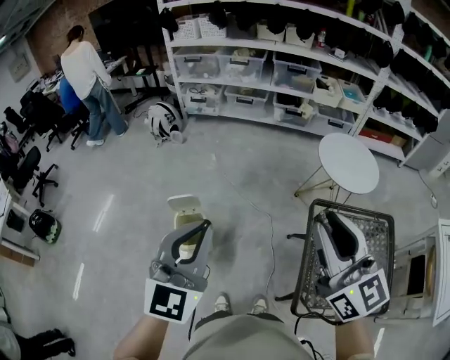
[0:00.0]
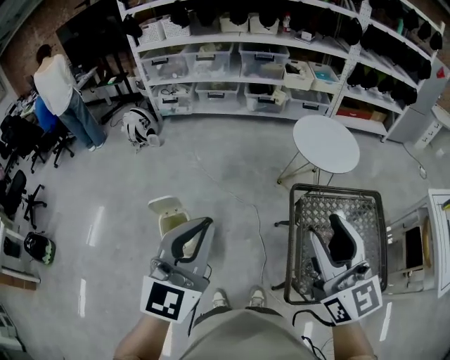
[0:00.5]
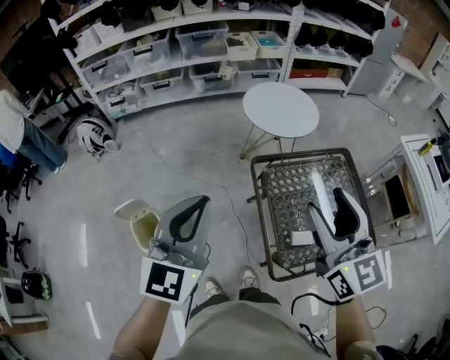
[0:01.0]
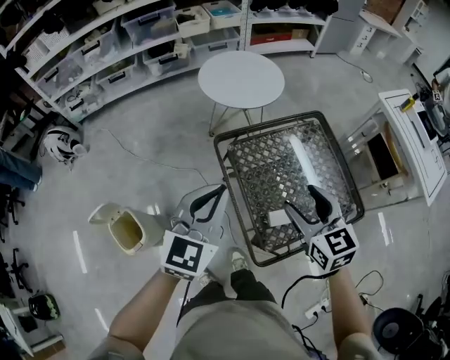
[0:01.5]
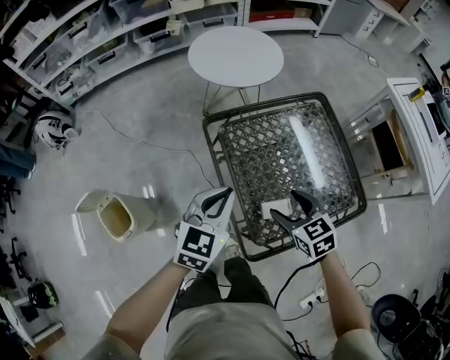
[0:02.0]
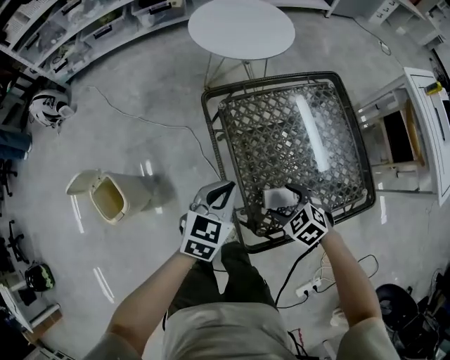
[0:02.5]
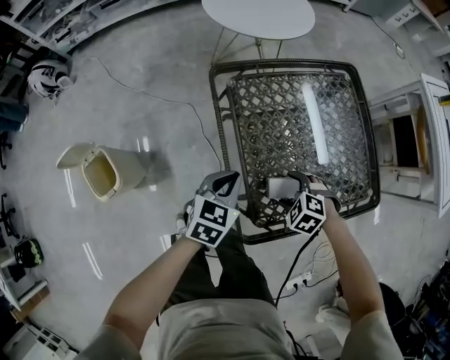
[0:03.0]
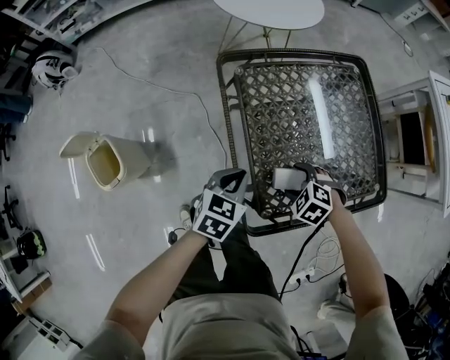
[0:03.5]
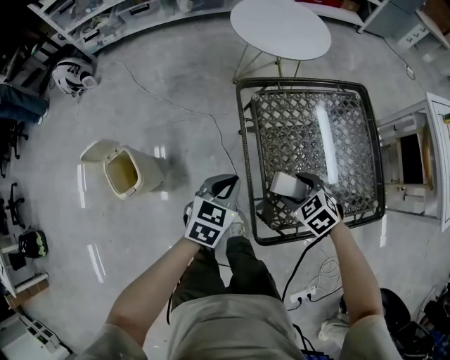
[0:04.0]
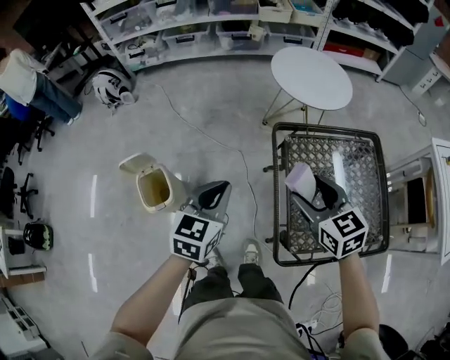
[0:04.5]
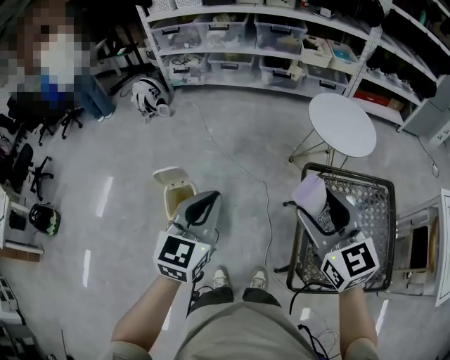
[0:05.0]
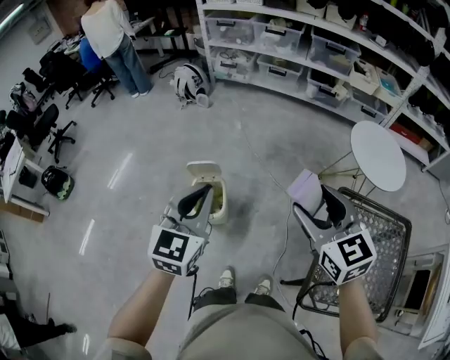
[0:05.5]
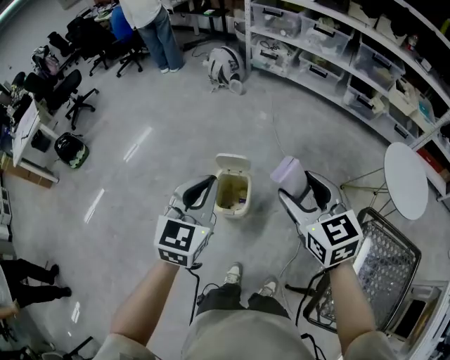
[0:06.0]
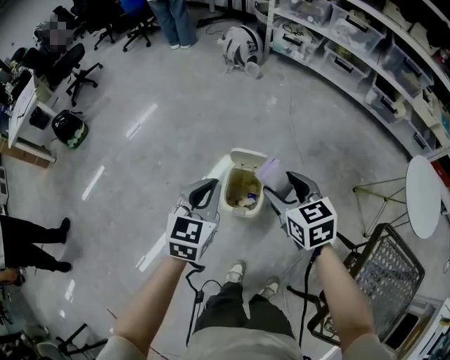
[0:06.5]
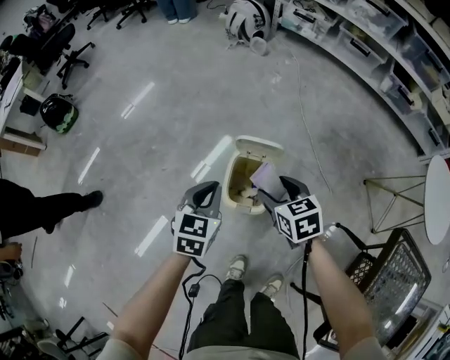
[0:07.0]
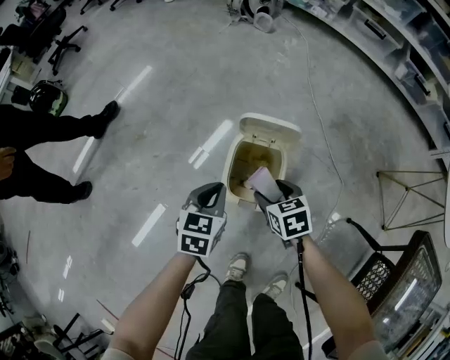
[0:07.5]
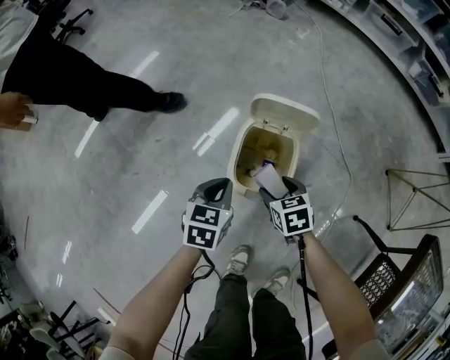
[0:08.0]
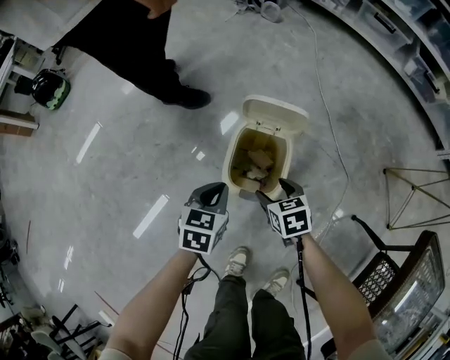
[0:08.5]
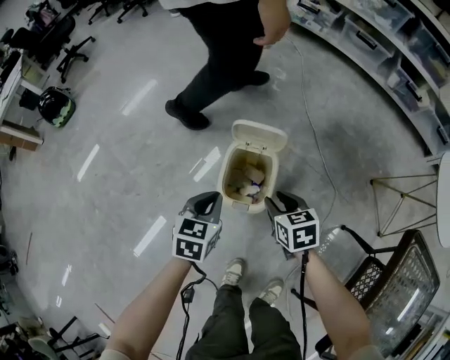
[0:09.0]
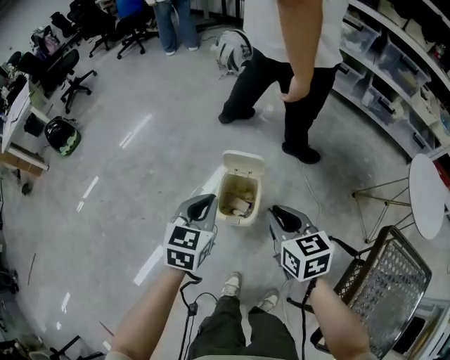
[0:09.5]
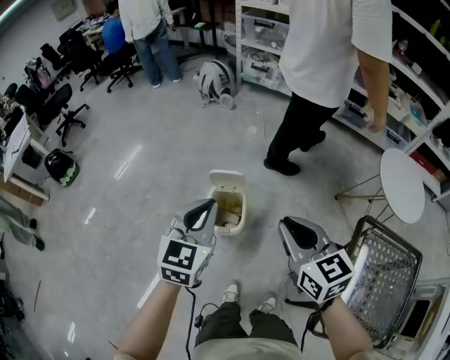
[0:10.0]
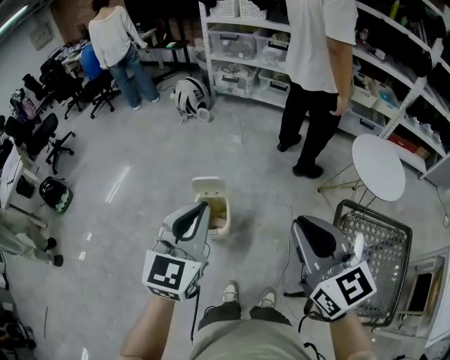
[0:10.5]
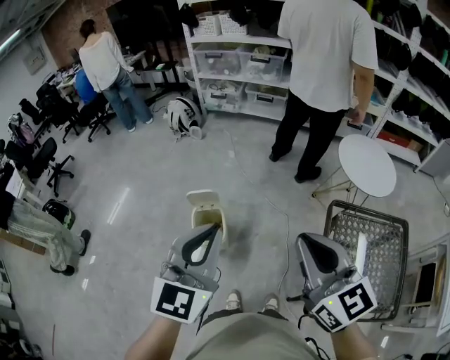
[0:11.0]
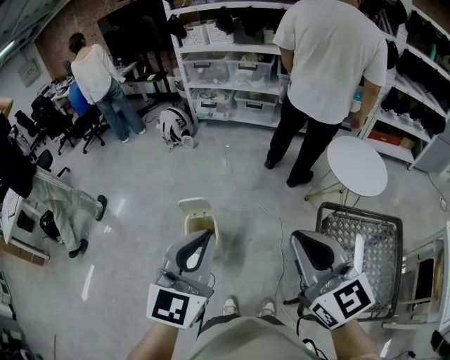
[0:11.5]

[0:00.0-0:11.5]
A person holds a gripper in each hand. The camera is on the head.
0:00.0 to 0:02.0: The right gripper shifts roughly 40 cm downward, points its fingers about 50 degrees further downward, and opens its fingers. The left gripper shifts by some 50 cm, and swivels approximately 50 degrees.
0:02.0 to 0:04.0: The grippers both shift downward by roughly 15 cm. The right gripper swivels some 30 degrees.
0:04.0 to 0:06.0: The pair of grippers is taken about 50 cm. The left gripper swivels about 60 degrees. Meanwhile the right gripper angles its fingers upward, by roughly 40 degrees.
0:06.0 to 0:07.5: The grippers both shift downward by approximately 50 cm. The left gripper changes its angle by about 30 degrees. The right gripper angles its fingers downward, by about 30 degrees.
0:07.5 to 0:09.5: Both grippers move upward, some 25 cm. The right gripper rotates about 20 degrees, and closes its fingers.
0:09.5 to 0:11.5: The right gripper is displaced upward, backward and to the right by about 50 cm, and changes its angle by approximately 40 degrees; the left gripper heads upward, to the right and backward, covering some 50 cm, and changes its angle by some 30 degrees.

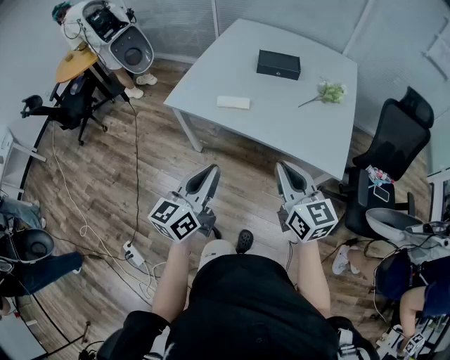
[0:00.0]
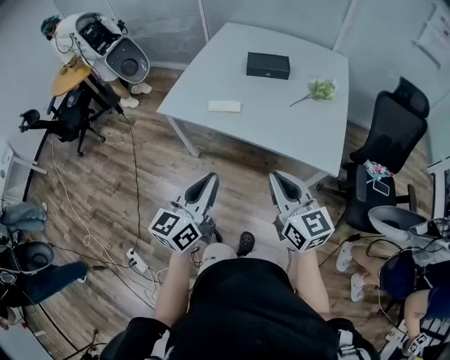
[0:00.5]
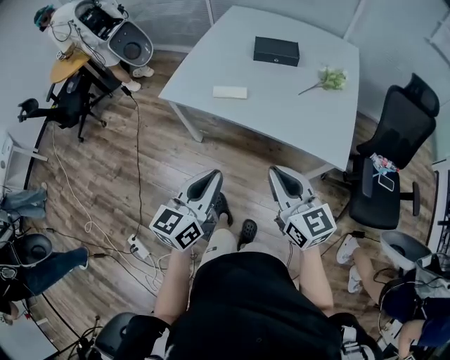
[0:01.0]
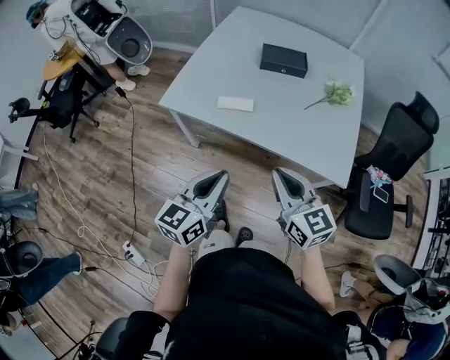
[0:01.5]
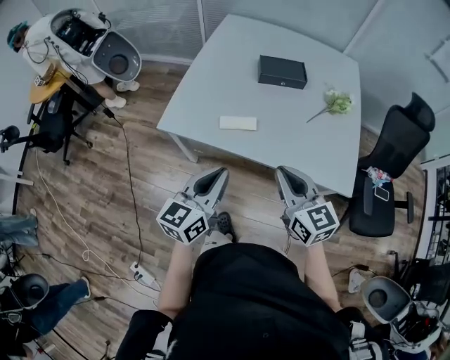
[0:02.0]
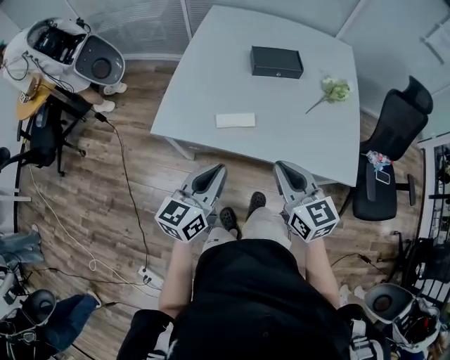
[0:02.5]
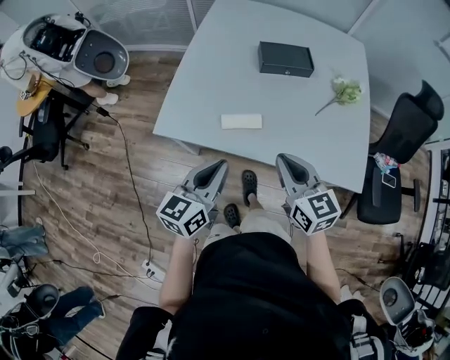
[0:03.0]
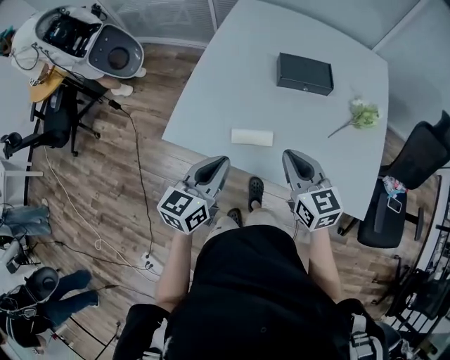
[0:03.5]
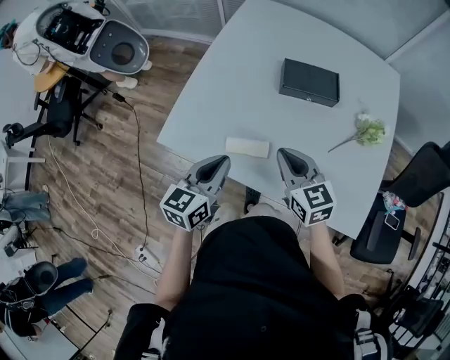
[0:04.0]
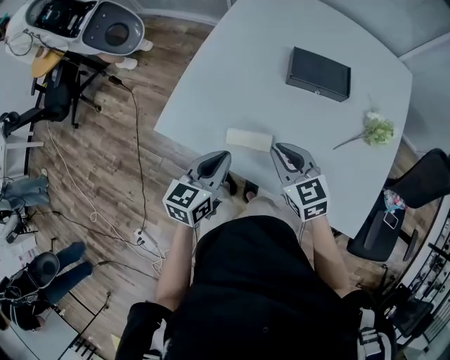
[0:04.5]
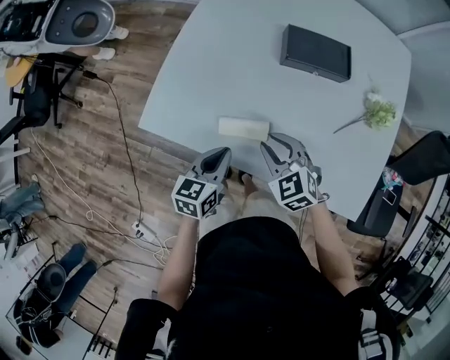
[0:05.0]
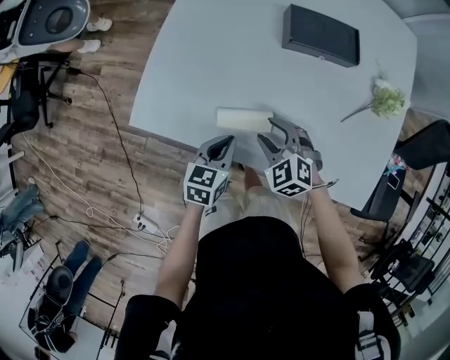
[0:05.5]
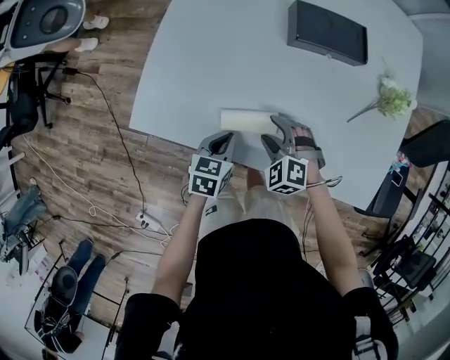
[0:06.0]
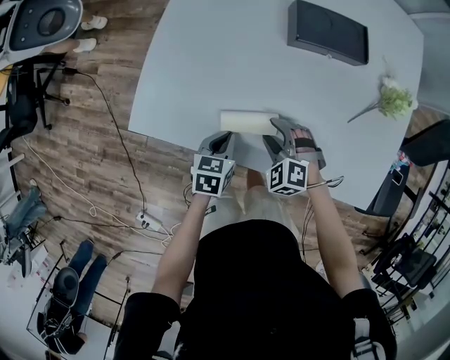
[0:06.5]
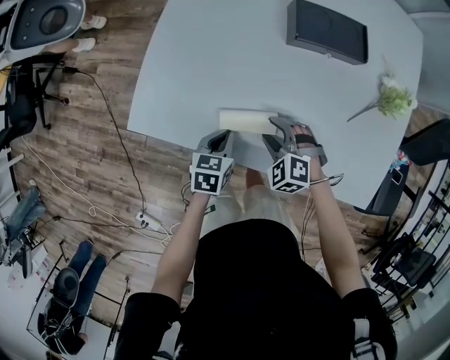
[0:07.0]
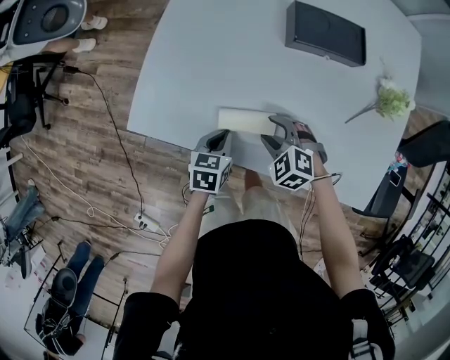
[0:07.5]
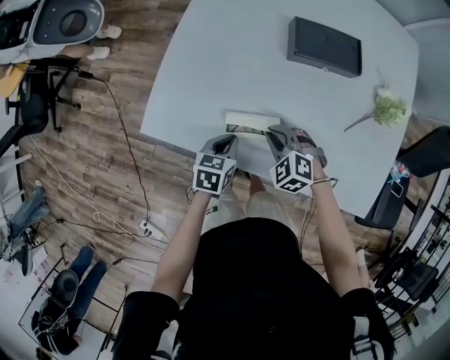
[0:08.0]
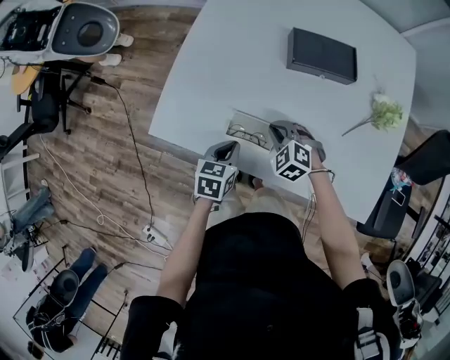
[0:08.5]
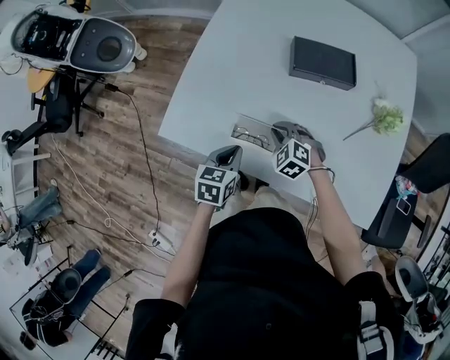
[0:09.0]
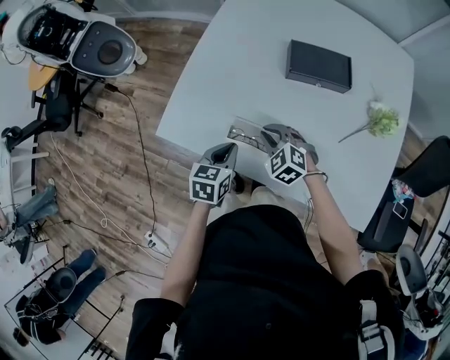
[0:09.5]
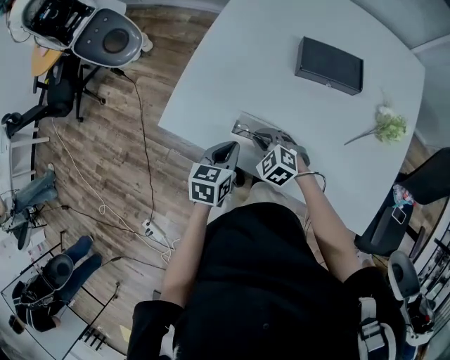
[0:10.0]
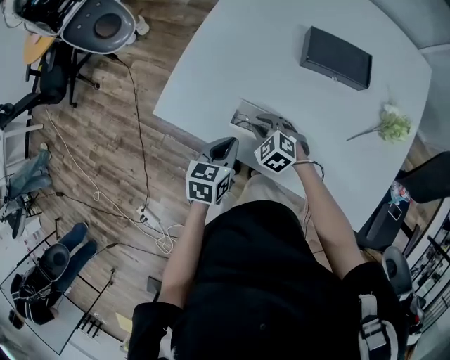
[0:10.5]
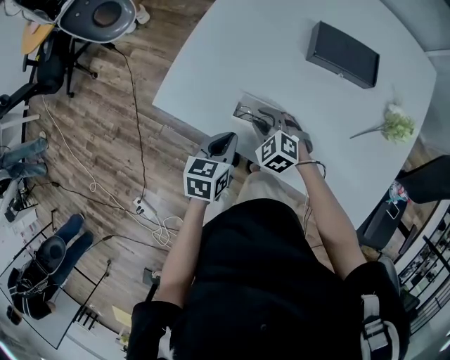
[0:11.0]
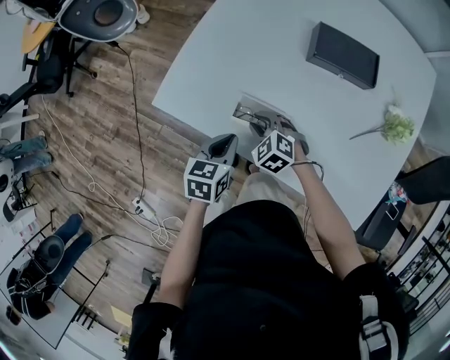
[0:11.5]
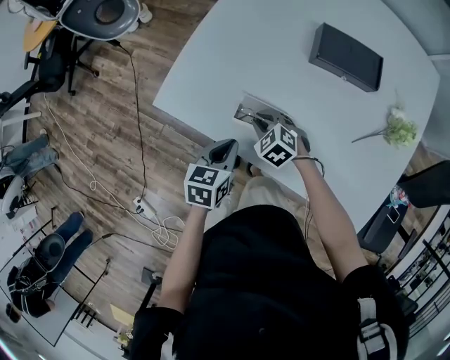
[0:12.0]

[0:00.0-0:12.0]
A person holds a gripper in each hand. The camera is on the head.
0:00.0 to 0:02.0: The left gripper moves forward, roughly 20 cm, while the right gripper is displaced forward and to the left by some 20 cm.
0:02.0 to 0:04.0: Both grippers travel together forward, approximately 25 cm.
0:04.0 to 0:06.0: The grippers both shift downward by approximately 25 cm. The right gripper points its fingers approximately 30 degrees further downward, and opens. Meanwhile the left gripper changes its angle by roughly 30 degrees.
0:06.0 to 0:08.0: The right gripper closes.
0:08.0 to 0:10.0: The right gripper ends up approximately 5 cm from where it was, while the left gripper travels upward by roughly 10 cm.
0:10.0 to 0:12.0: The right gripper is displaced downward by about 5 cm.

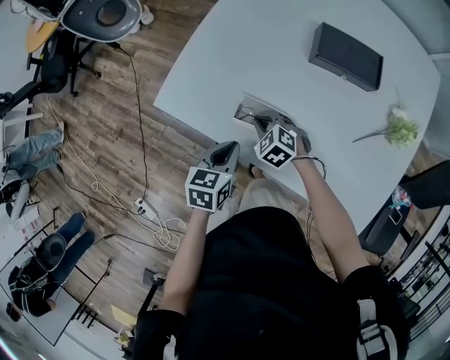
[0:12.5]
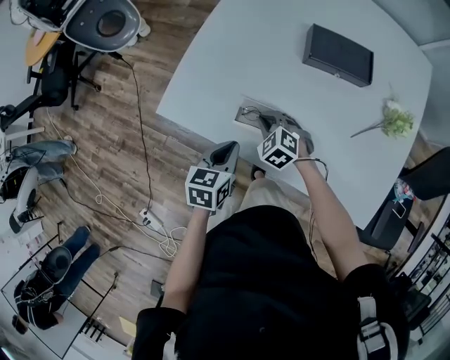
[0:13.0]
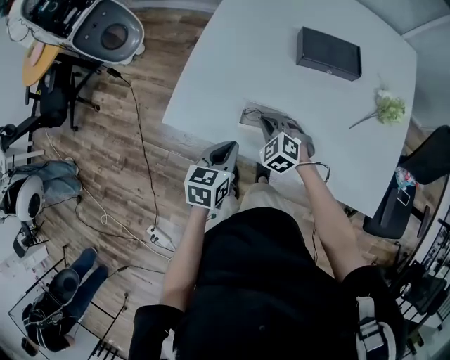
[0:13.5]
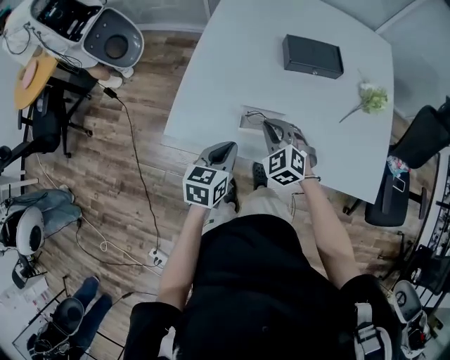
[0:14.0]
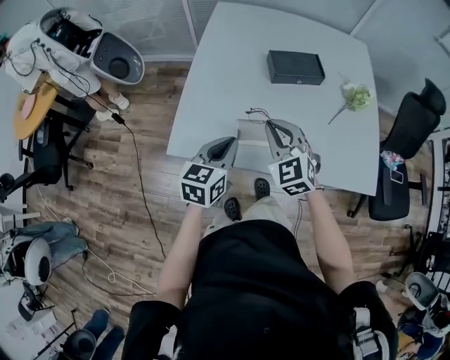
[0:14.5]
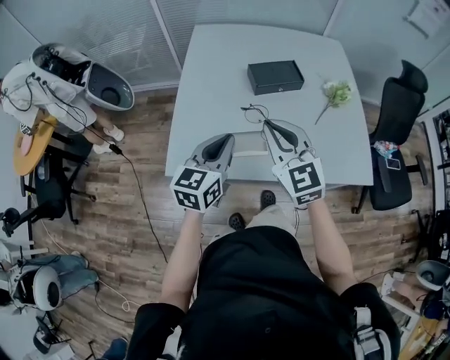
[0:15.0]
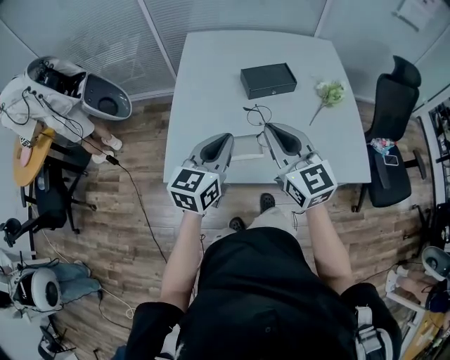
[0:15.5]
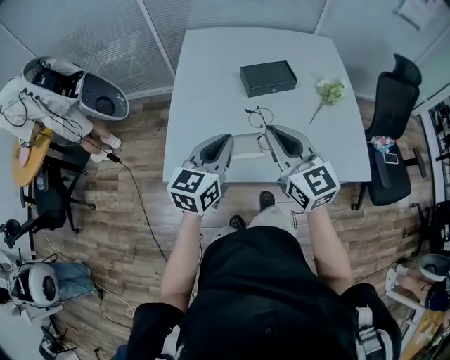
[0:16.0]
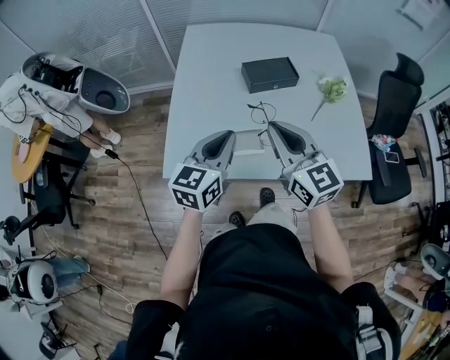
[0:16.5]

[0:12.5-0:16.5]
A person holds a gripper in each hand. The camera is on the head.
0:12.5 to 0:14.5: The left gripper travels upward by roughly 15 cm, and rotates approximately 30 degrees; the right gripper goes approximately 30 cm upward, and tilts its fingers approximately 30 degrees upward.
0:14.5 to 0:16.5: The right gripper is displaced upward and to the right by some 15 cm, and swivels some 40 degrees; the left gripper travels upward by some 10 cm.
